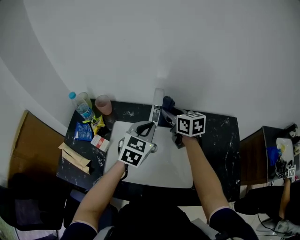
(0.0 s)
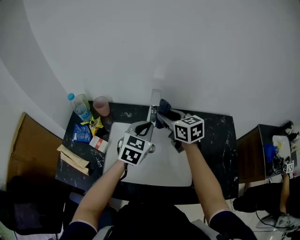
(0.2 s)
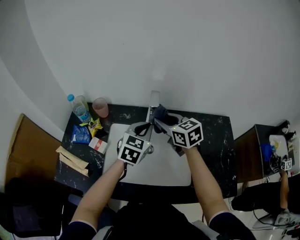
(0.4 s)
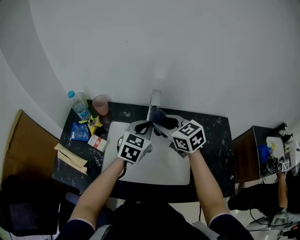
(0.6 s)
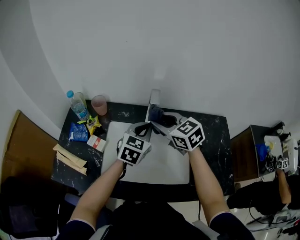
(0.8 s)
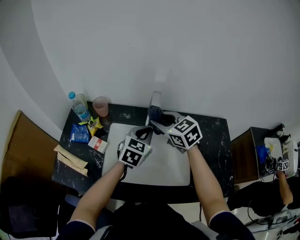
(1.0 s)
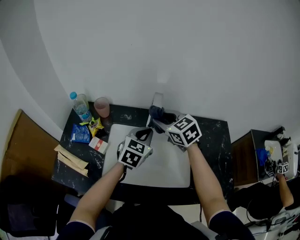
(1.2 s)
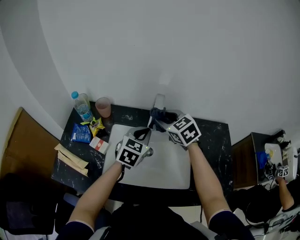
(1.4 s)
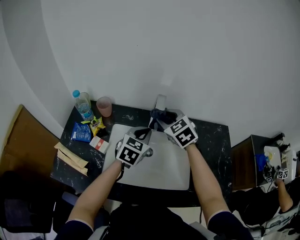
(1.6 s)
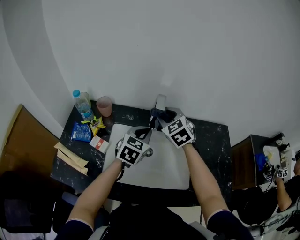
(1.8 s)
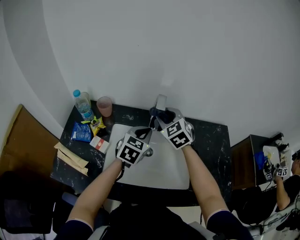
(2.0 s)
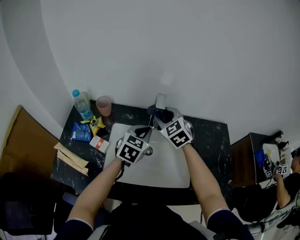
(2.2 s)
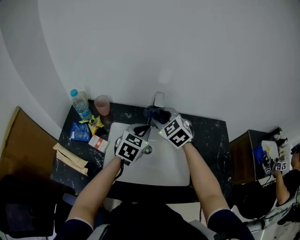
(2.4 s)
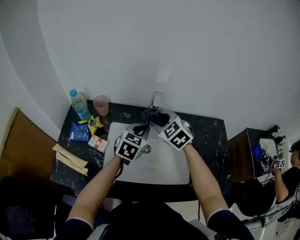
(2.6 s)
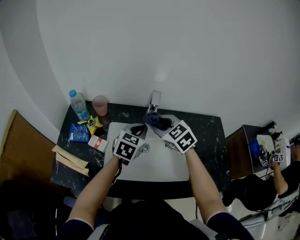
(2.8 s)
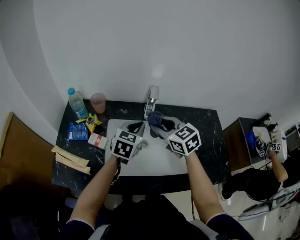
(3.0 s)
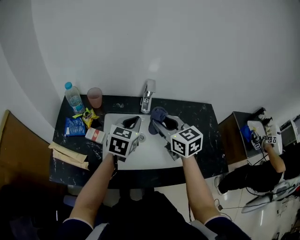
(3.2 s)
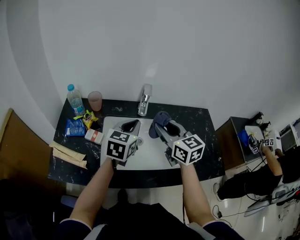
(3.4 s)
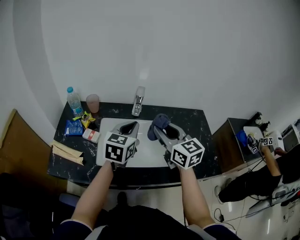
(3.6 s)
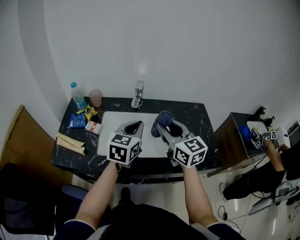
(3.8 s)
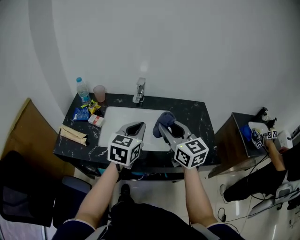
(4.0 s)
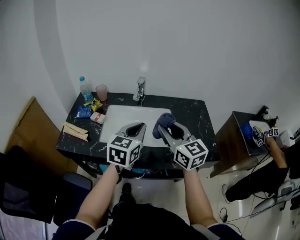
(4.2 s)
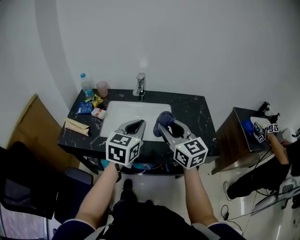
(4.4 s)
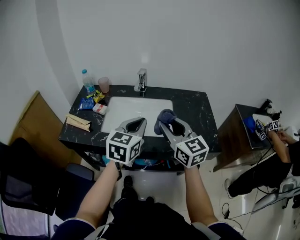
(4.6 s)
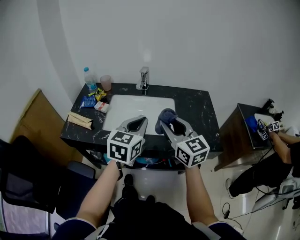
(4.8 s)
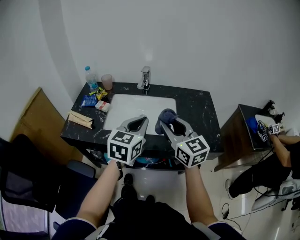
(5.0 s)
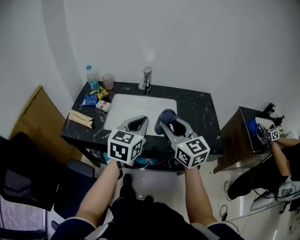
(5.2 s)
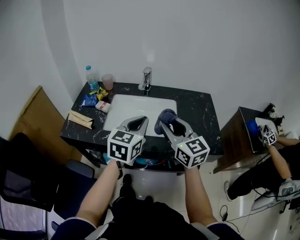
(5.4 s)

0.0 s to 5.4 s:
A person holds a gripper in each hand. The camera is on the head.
0.0 to 1.4 s: The right gripper changes its angle by about 40 degrees.
1.4 to 2.8 s: The right gripper travels backward by some 5 cm.
2.8 to 4.0 s: The left gripper is displaced backward and upward by about 20 cm; the right gripper travels backward, to the right and upward by roughly 25 cm, and tilts its fingers some 30 degrees upward.
4.0 to 5.4 s: The two grippers go roughly 5 cm backward.

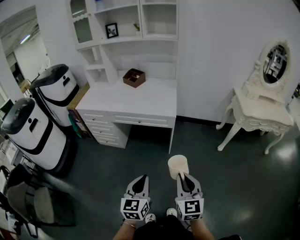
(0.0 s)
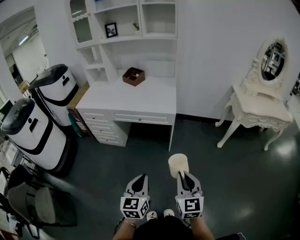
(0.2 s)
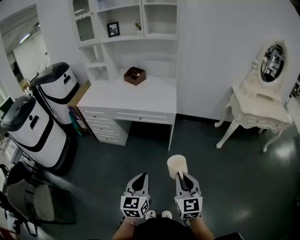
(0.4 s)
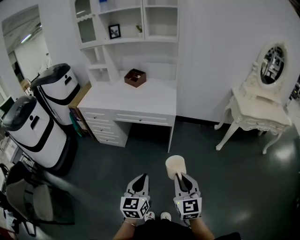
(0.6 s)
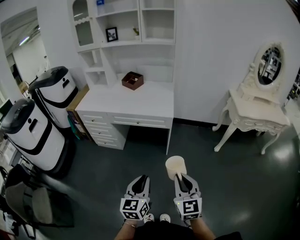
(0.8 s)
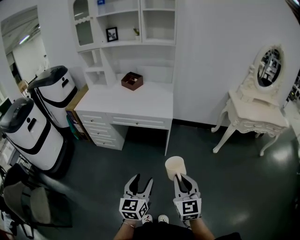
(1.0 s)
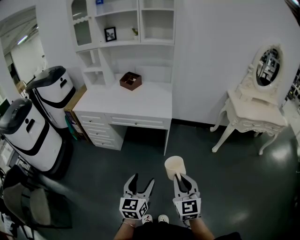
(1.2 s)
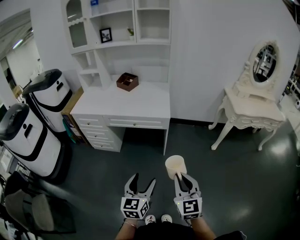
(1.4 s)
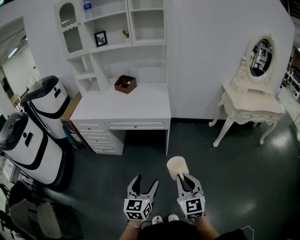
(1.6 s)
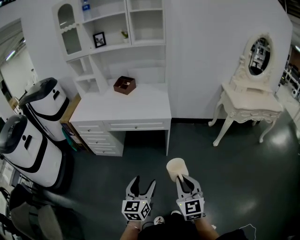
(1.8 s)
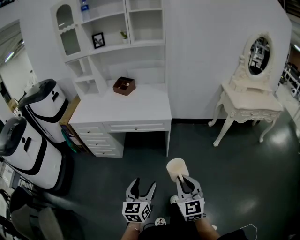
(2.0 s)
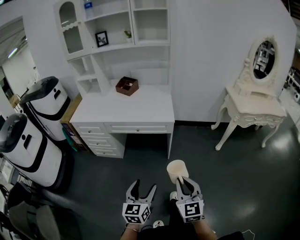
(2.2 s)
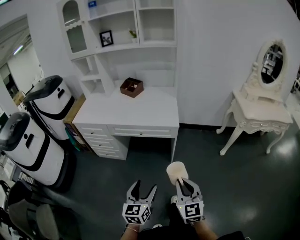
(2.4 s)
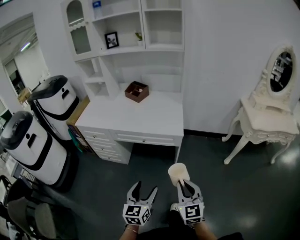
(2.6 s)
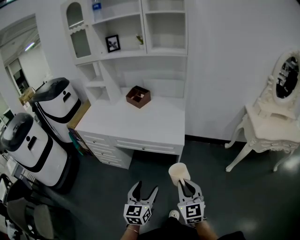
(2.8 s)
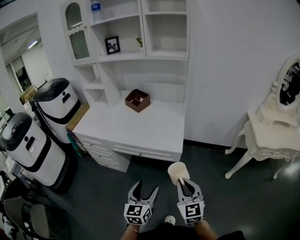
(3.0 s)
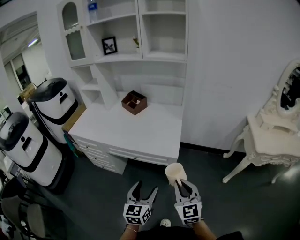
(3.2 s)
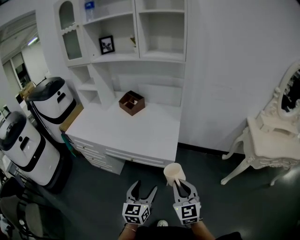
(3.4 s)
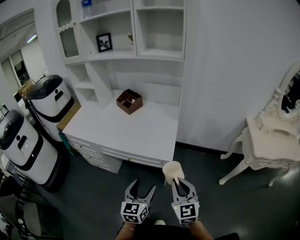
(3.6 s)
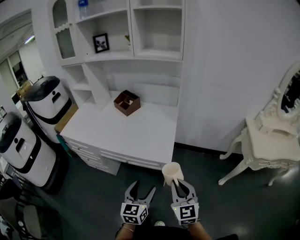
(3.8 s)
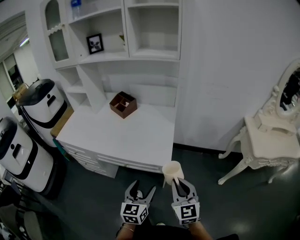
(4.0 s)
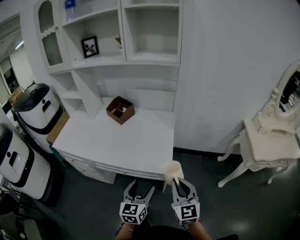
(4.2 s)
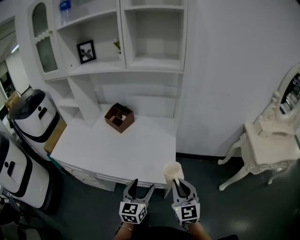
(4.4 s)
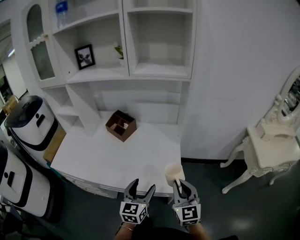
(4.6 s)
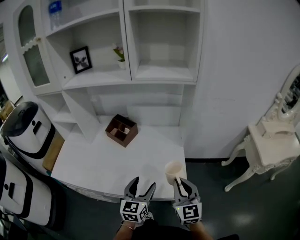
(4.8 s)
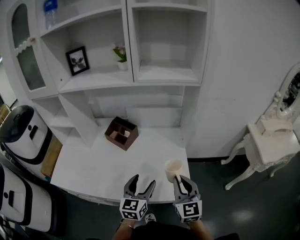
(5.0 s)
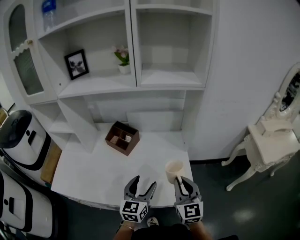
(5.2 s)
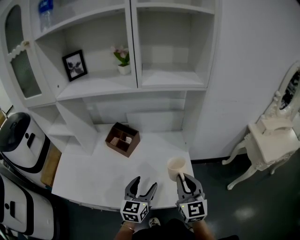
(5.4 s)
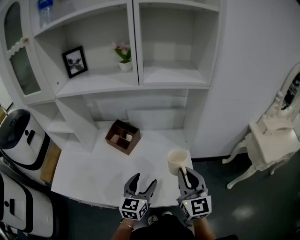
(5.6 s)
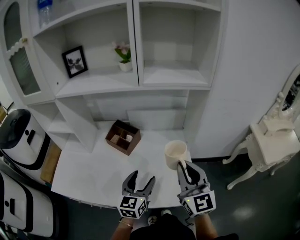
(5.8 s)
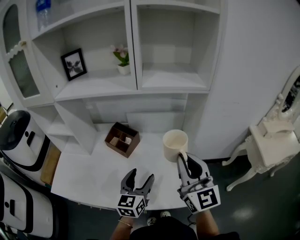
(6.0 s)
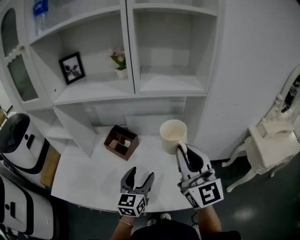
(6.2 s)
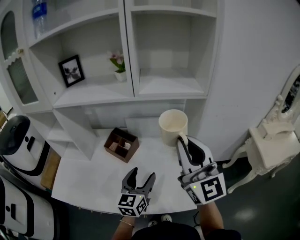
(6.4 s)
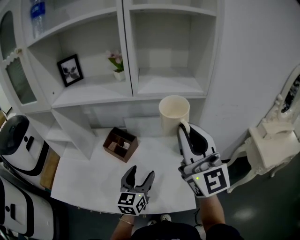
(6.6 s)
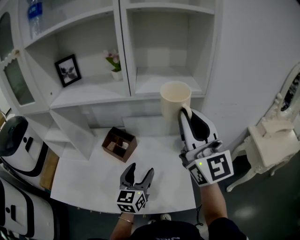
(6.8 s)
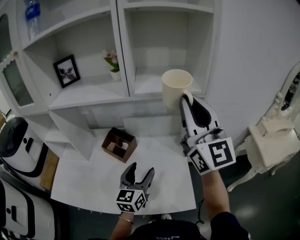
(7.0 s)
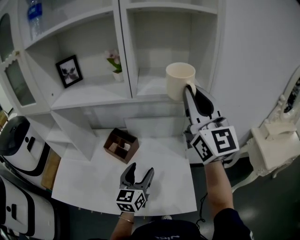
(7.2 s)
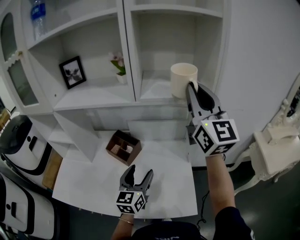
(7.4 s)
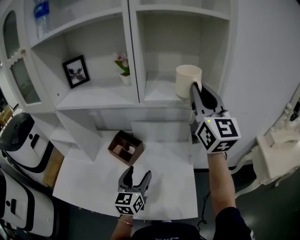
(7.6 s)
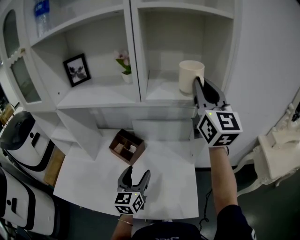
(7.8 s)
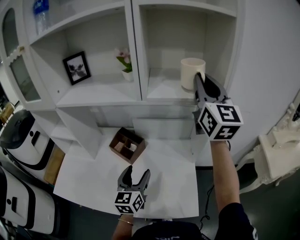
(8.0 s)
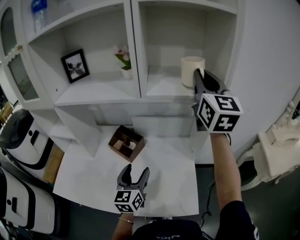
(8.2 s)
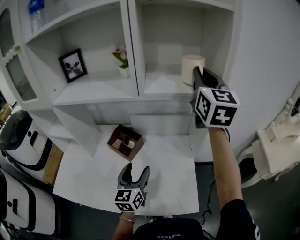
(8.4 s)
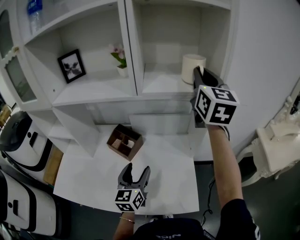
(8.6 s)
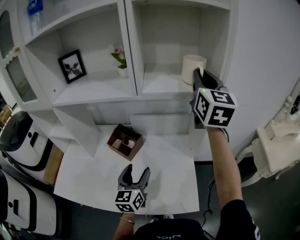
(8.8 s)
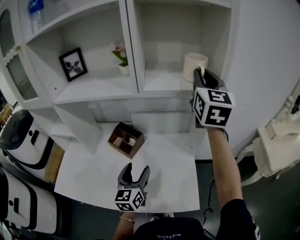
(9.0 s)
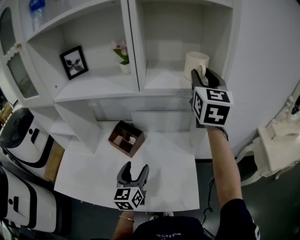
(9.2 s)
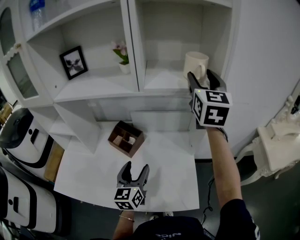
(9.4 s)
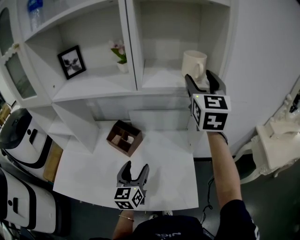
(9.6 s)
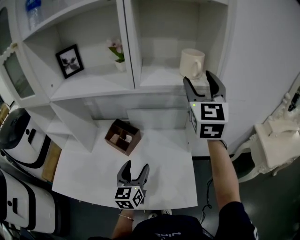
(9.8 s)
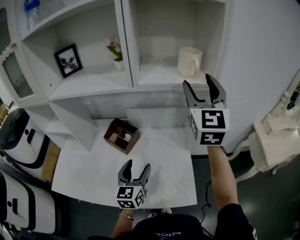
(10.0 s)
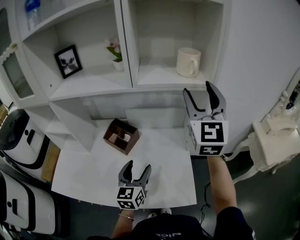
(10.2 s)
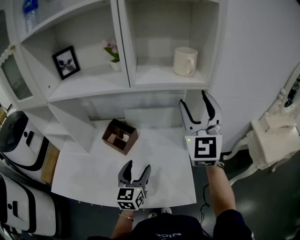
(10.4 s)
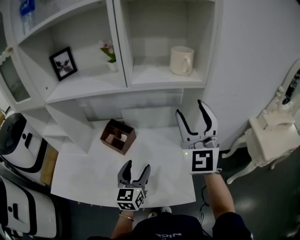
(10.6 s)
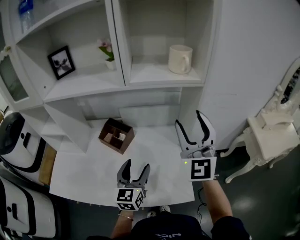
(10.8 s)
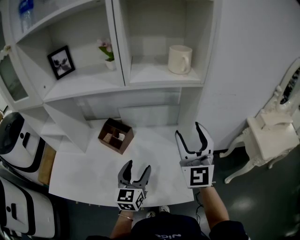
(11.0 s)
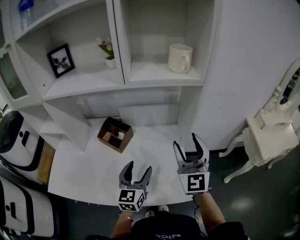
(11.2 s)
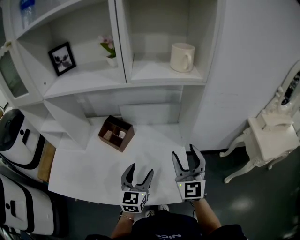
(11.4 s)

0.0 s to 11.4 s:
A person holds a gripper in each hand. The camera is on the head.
0.0 to 1.4 s: The left gripper opens its fingers.
1.4 to 2.8 s: The two grippers go roughly 20 cm forward.
2.8 to 4.2 s: Both grippers travel together forward, roughly 25 cm.
4.2 to 5.6 s: The right gripper is displaced forward, to the left and upward by roughly 30 cm; the left gripper is displaced forward and to the left by roughly 30 cm.
5.6 to 7.2 s: The right gripper shifts roughly 30 cm upward and forward, and rotates about 30 degrees, while the left gripper goes roughly 10 cm forward and upward.
7.2 to 8.6 s: The right gripper shifts some 10 cm forward, and rotates some 20 degrees.
8.6 to 10.0 s: The right gripper moves backward, approximately 5 cm, and opens.
10.0 to 11.4 s: The right gripper shifts roughly 25 cm downward and backward, while the left gripper changes place by approximately 5 cm.

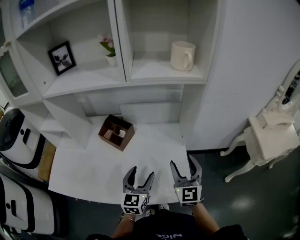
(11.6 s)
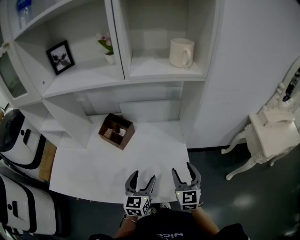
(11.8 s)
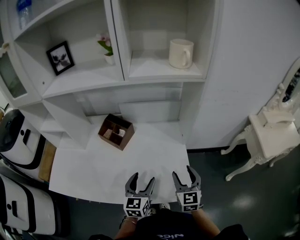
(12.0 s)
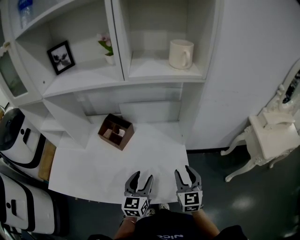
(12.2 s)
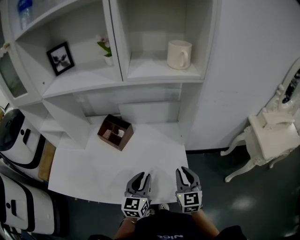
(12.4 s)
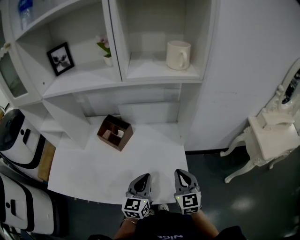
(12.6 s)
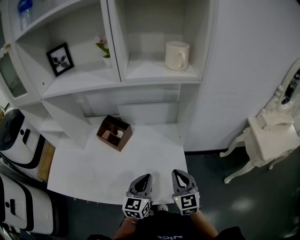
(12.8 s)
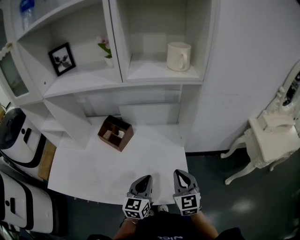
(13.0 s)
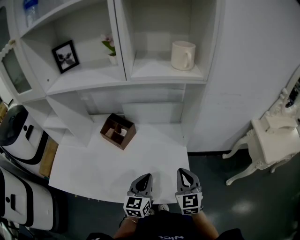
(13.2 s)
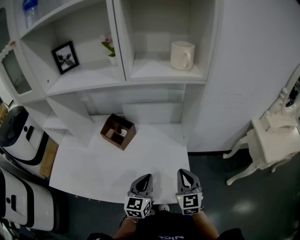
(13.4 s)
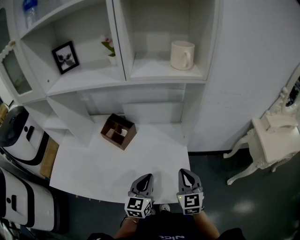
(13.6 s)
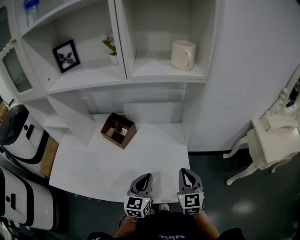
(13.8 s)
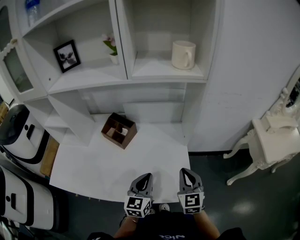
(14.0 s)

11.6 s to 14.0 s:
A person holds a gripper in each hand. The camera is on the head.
11.6 to 12.8 s: The left gripper closes its fingers. The right gripper is displaced downward by approximately 5 cm, and closes its fingers.
12.8 to 14.0 s: The grippers move only a little.

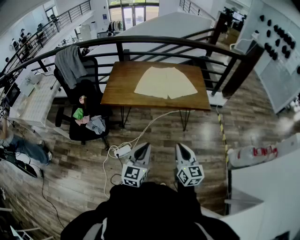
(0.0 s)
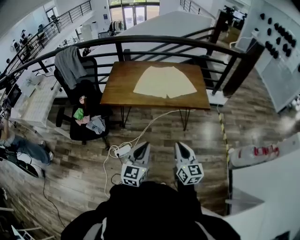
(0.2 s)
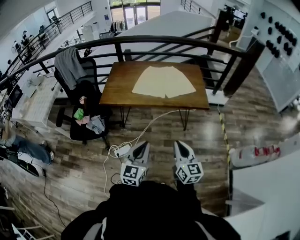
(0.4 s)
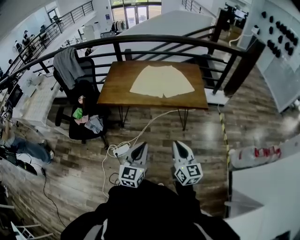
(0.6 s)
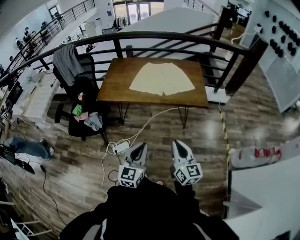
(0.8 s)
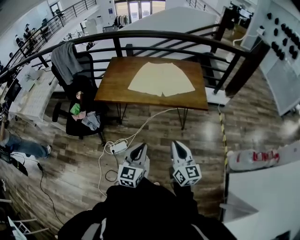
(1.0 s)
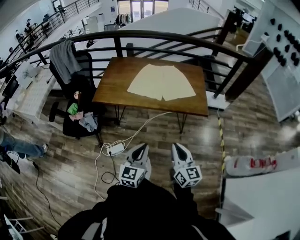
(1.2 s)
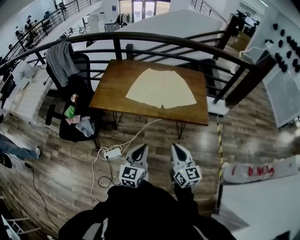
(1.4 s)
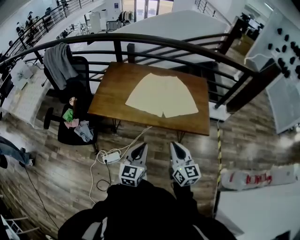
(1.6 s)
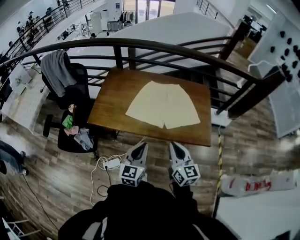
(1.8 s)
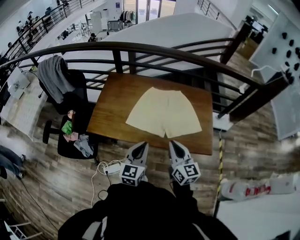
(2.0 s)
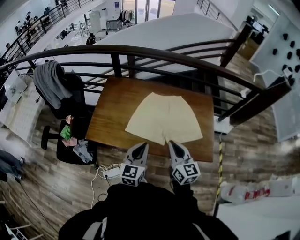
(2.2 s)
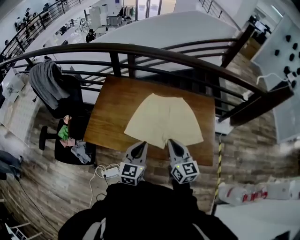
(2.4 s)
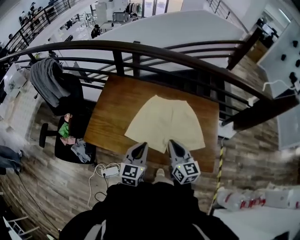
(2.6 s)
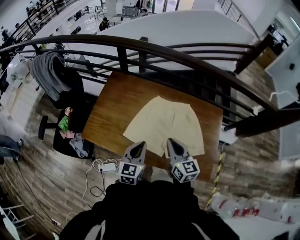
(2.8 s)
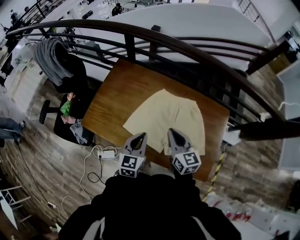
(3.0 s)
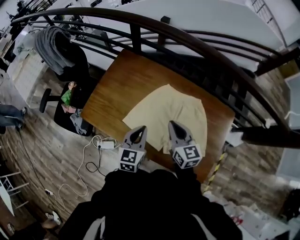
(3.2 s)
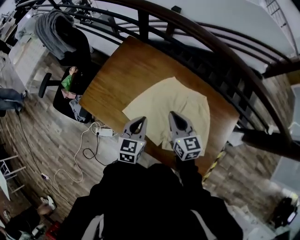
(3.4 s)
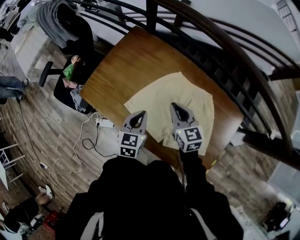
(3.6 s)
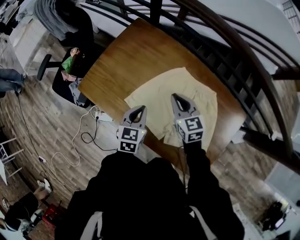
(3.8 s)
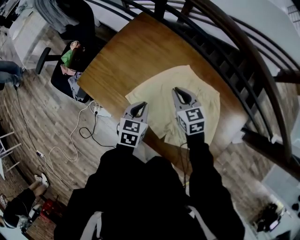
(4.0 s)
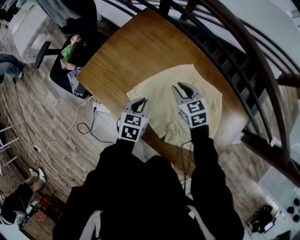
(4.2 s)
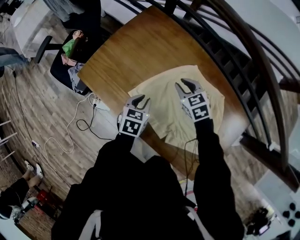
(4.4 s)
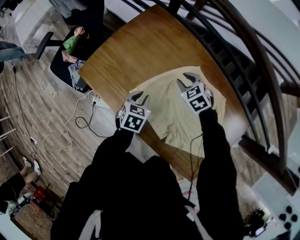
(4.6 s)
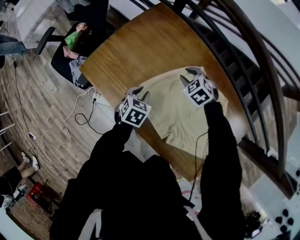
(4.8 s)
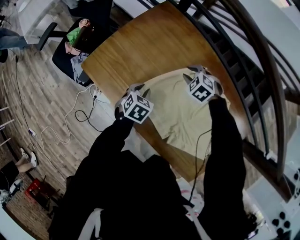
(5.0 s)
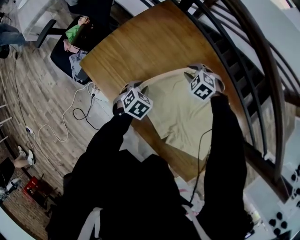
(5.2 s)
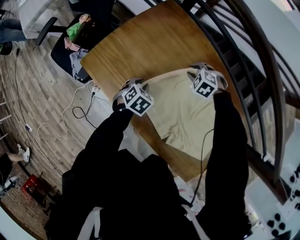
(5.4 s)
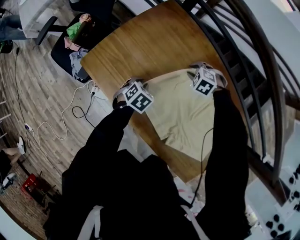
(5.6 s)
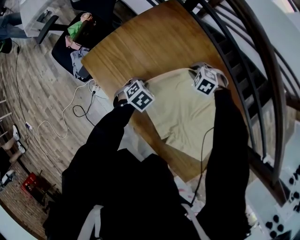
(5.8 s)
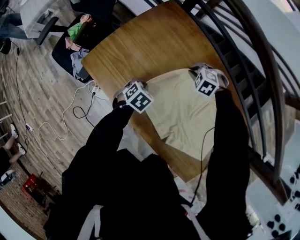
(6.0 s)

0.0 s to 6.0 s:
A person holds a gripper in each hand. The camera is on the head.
0.0 to 1.6 s: The grippers both shift forward by some 25 cm.
1.6 to 3.0 s: The two grippers go approximately 35 cm forward. The right gripper swivels some 20 degrees.
3.0 to 4.4 s: The right gripper travels downward and forward by approximately 25 cm, and tips its fingers downward by approximately 30 degrees. Meanwhile the left gripper goes some 20 cm downward, and rotates approximately 30 degrees.
4.4 to 6.0 s: Both grippers move downward, some 10 cm. The right gripper rotates around the line of its fingers by about 50 degrees, counterclockwise from behind. Meanwhile the left gripper swivels some 20 degrees.
